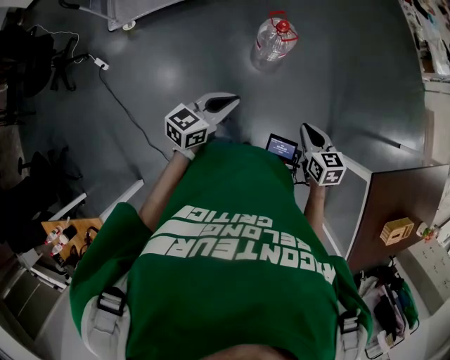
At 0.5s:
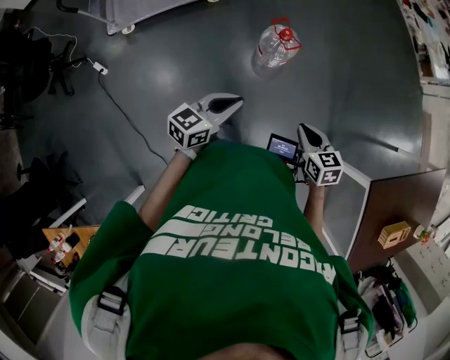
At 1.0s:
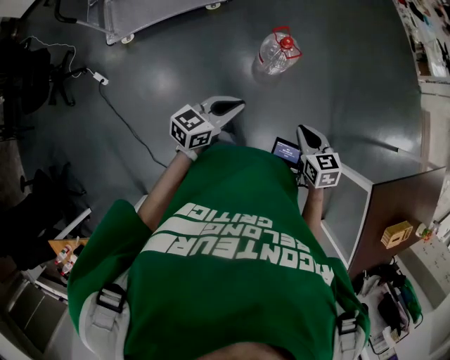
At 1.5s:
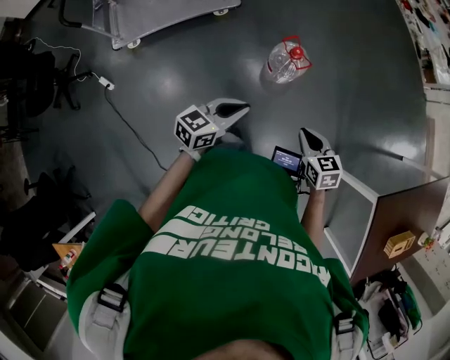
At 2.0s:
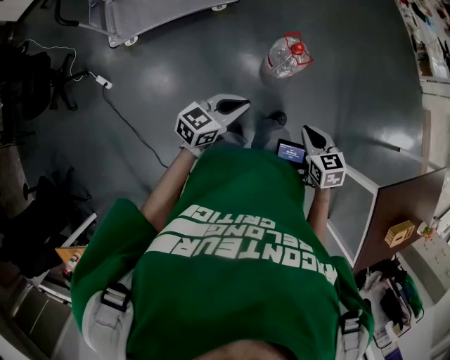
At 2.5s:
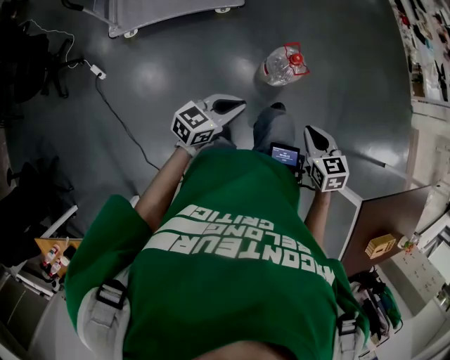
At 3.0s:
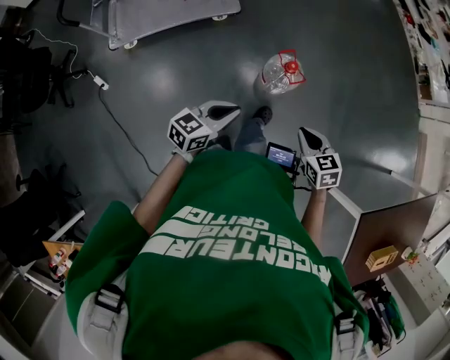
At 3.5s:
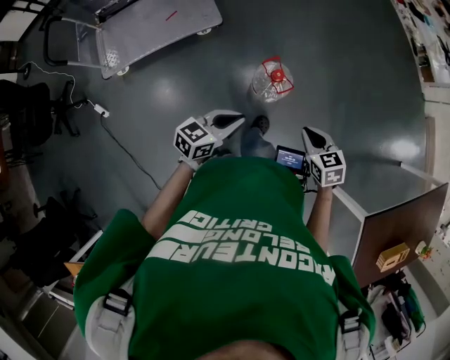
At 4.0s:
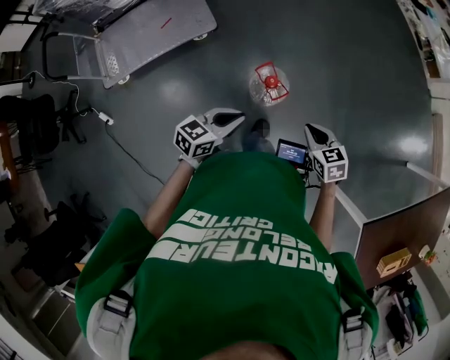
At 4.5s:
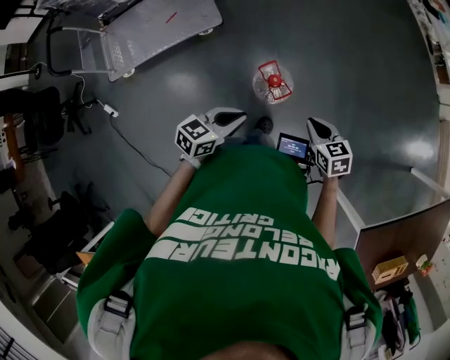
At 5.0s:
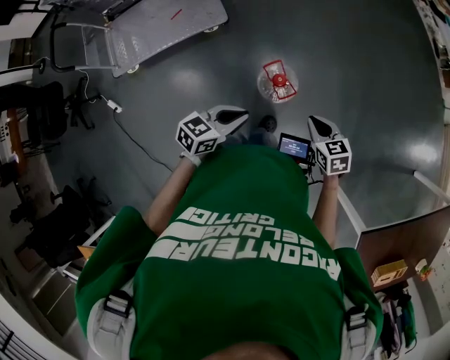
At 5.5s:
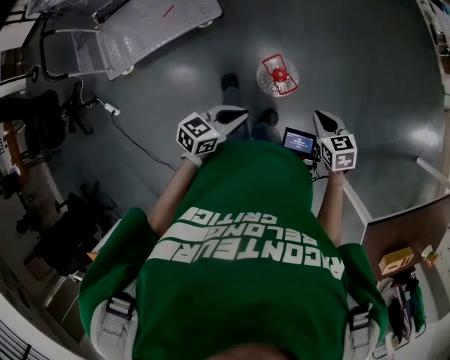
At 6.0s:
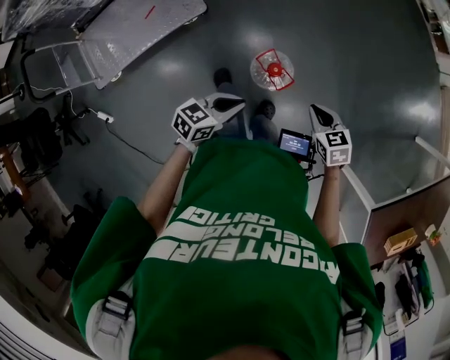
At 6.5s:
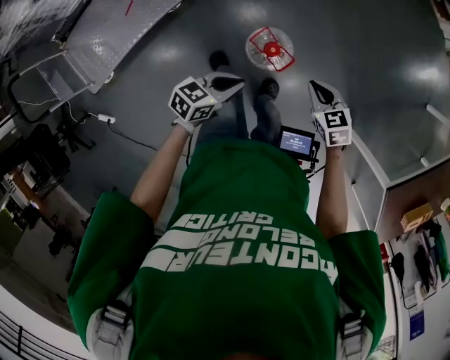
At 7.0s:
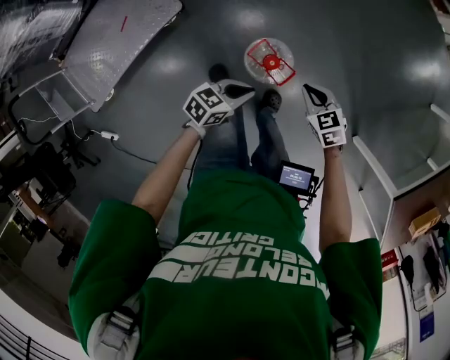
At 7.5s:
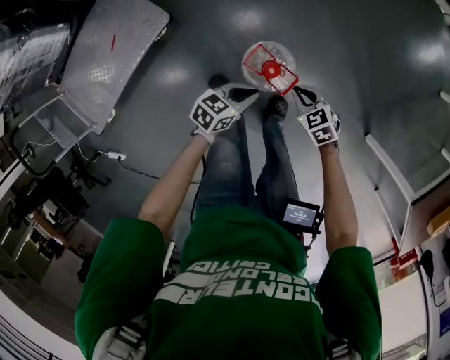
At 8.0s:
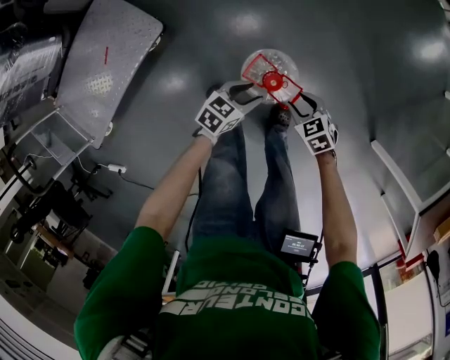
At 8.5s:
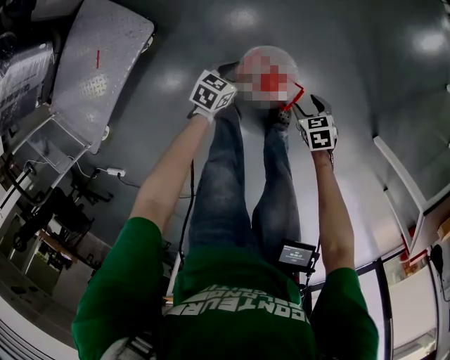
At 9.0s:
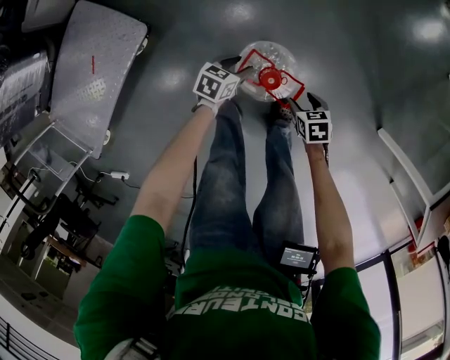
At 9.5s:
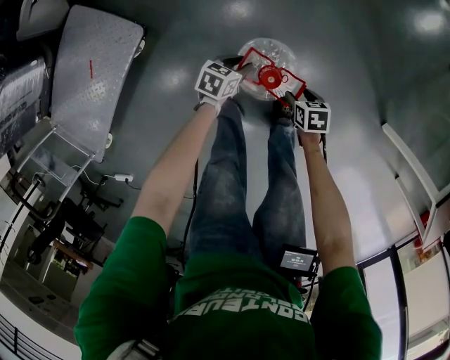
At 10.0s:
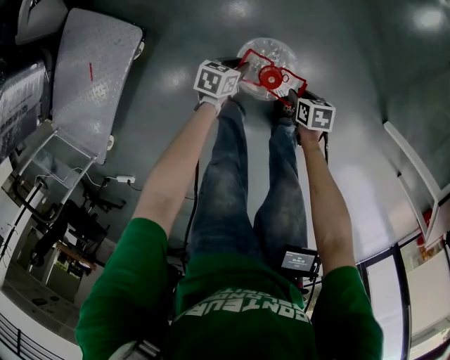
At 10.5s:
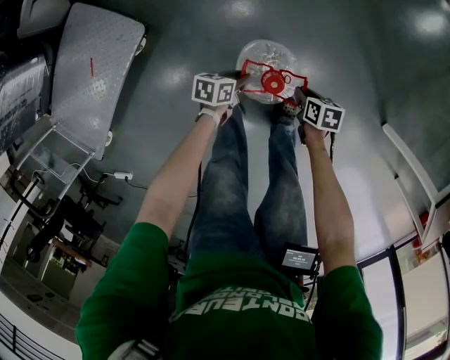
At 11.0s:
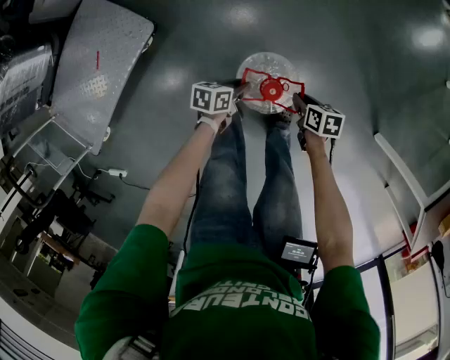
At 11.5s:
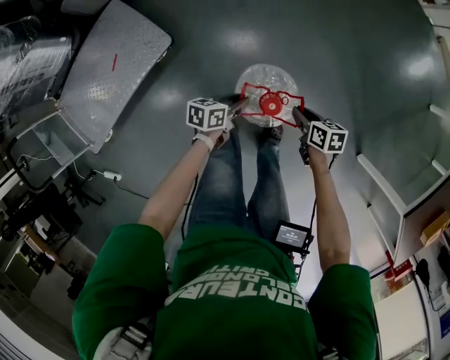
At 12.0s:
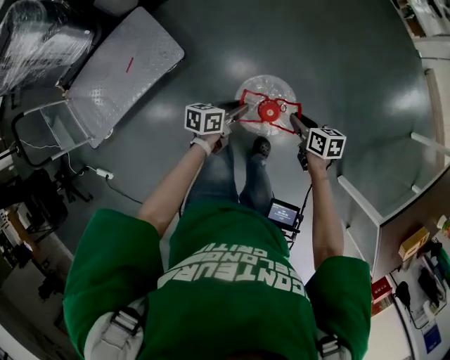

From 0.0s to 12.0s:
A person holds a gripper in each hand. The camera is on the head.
From 0.0s to 2.0s: Both grippers travel together to the left and forward, about 15 cm.
From 2.0s to 4.0s: The two grippers go roughly 25 cm forward and to the right.
From 4.0s to 6.0s: The left gripper goes approximately 10 cm forward and downward. Meanwhile the right gripper moves forward, some 10 cm.
From 6.0s to 8.0s: The right gripper goes some 30 cm downward, and opens up. Meanwhile the left gripper heads downward and forward, covering approximately 30 cm, rotates approximately 20 degrees, and opens up.
From 8.0s to 10.0s: The right gripper heads downward, covering some 10 cm, rolls clockwise, seen from behind, by approximately 50 degrees, and opens and closes again; the left gripper heads downward and forward, covering roughly 15 cm, and closes its fingers.
From 10.0s to 12.0s: Both grippers move upward, approximately 35 cm. The right gripper changes its angle by some 30 degrees, while the left gripper swivels some 40 degrees.

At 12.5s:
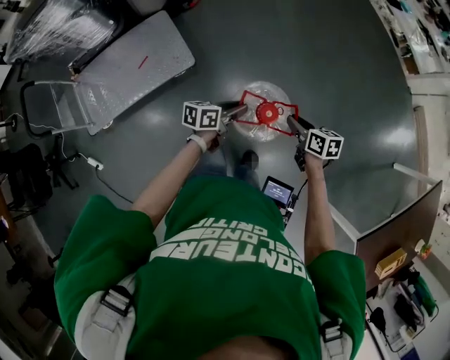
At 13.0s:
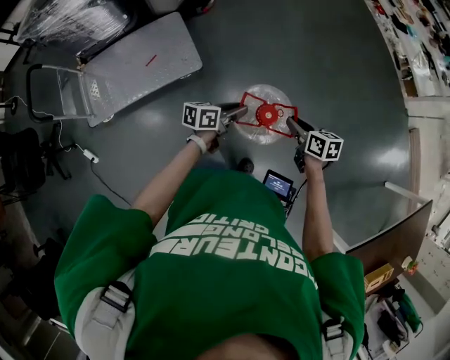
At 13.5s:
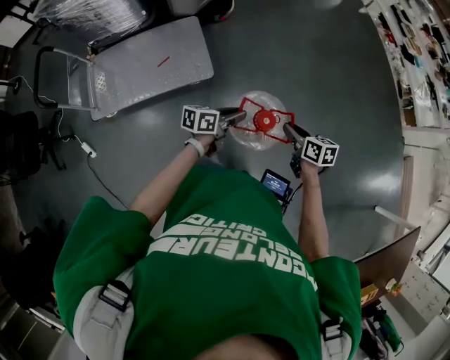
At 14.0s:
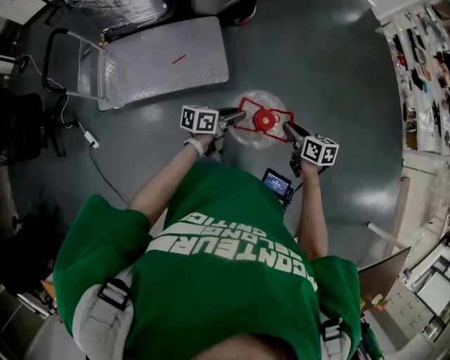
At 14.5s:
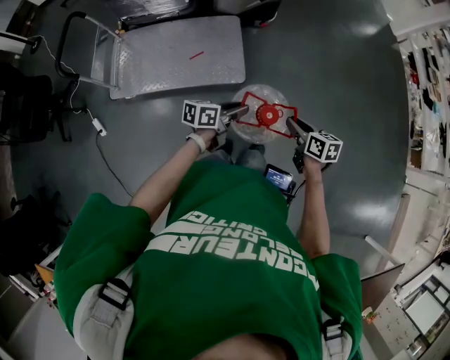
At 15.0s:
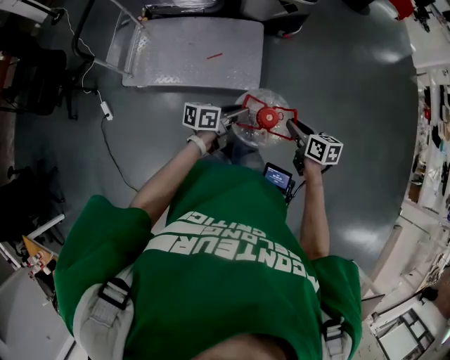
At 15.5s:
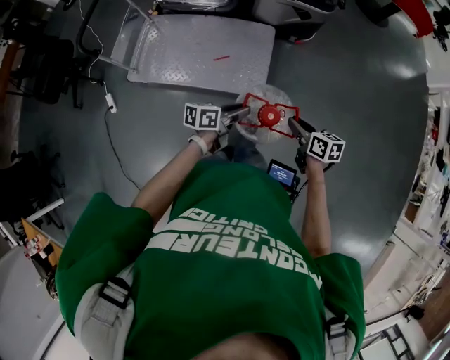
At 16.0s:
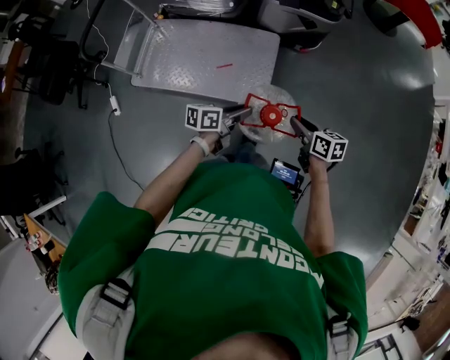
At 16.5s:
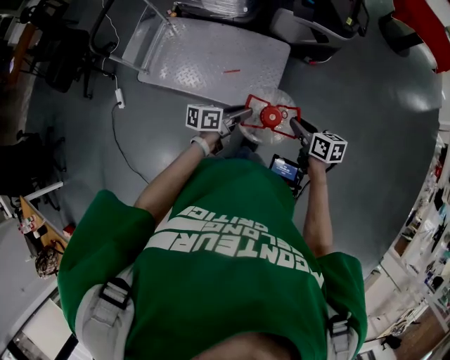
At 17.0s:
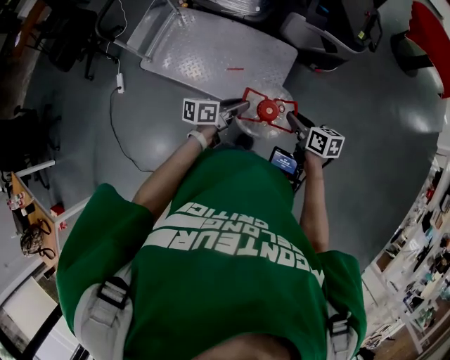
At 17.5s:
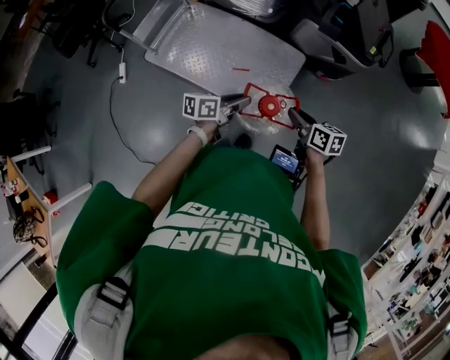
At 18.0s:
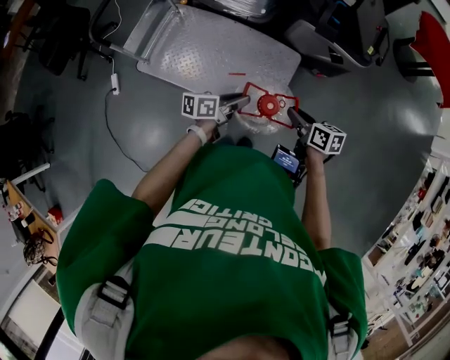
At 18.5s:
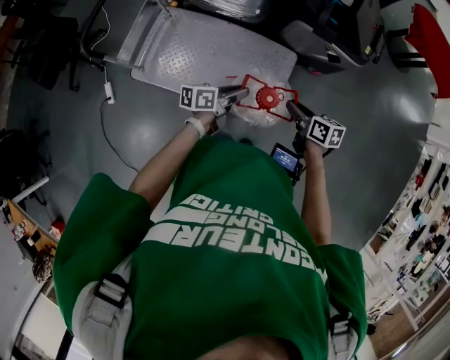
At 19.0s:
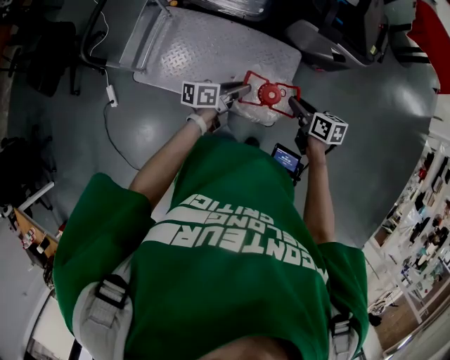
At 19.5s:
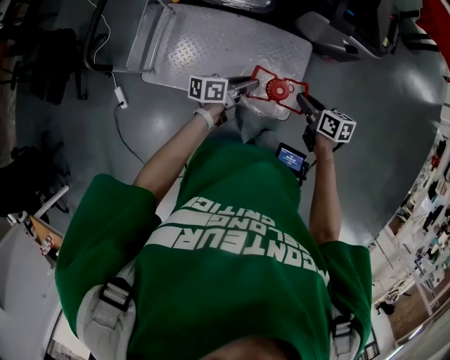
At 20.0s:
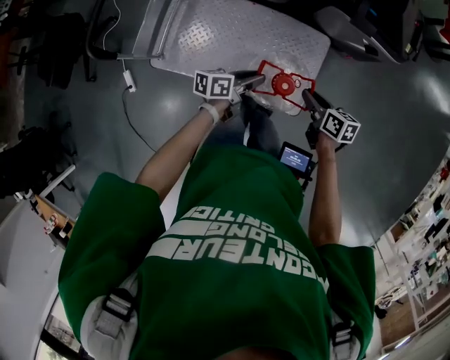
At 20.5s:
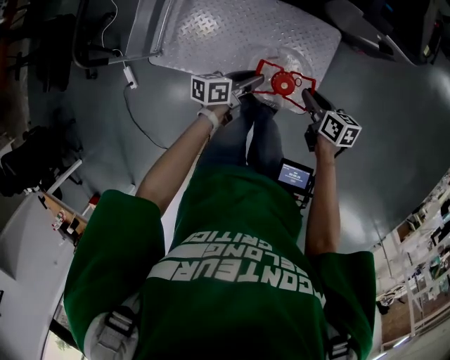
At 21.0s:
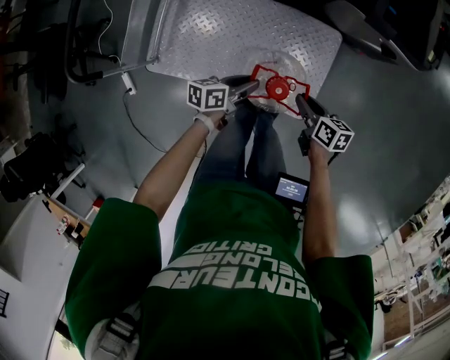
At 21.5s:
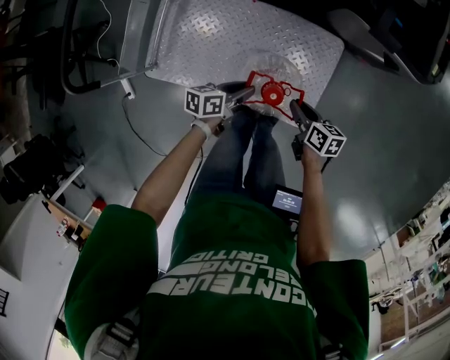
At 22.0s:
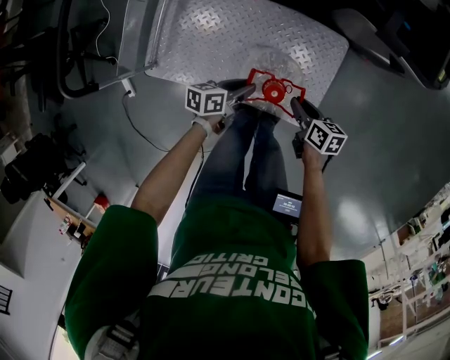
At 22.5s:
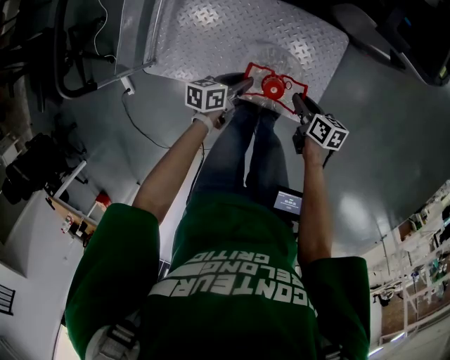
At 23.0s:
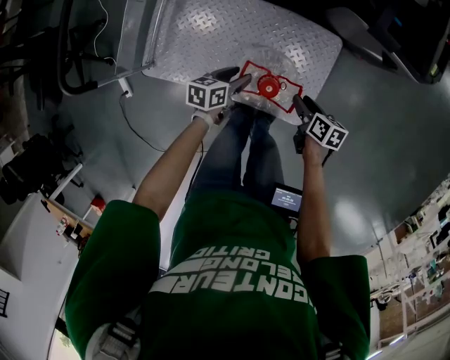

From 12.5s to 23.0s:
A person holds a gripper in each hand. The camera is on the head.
From 12.5s to 14.5s: The right gripper is displaced to the left and forward by approximately 30 cm, and rotates some 20 degrees. The left gripper travels to the left by some 25 cm, and turns by approximately 20 degrees.
From 14.5s to 16.5s: The right gripper shifts by approximately 25 cm, and turns by about 20 degrees. Meanwhile the left gripper changes place by about 20 cm, and changes its angle by about 20 degrees.
From 16.5s to 19.0s: The two grippers go about 25 cm forward and to the left.
From 19.0s to 21.0s: The right gripper goes about 15 cm downward; the left gripper is displaced downward and forward by approximately 20 cm.
From 21.0s to 23.0s: The right gripper moves downward, approximately 5 cm, and opens its fingers; the left gripper is displaced downward and forward by roughly 5 cm, and opens.

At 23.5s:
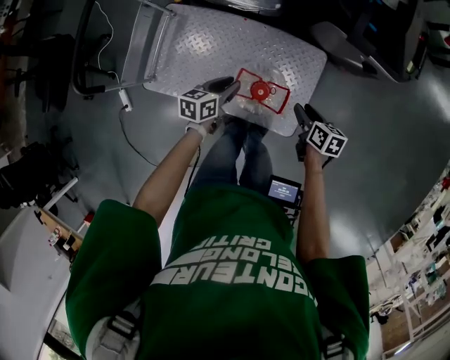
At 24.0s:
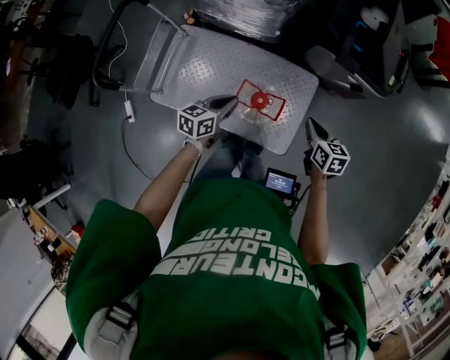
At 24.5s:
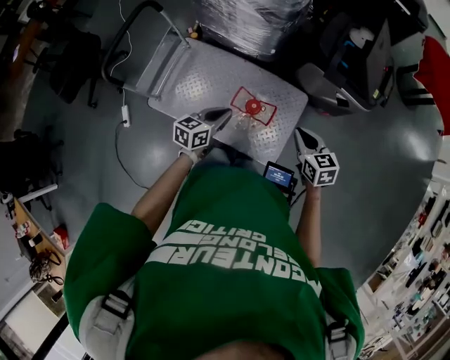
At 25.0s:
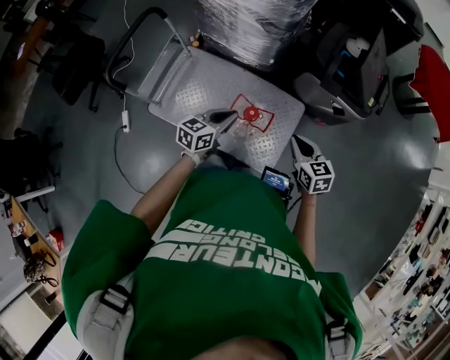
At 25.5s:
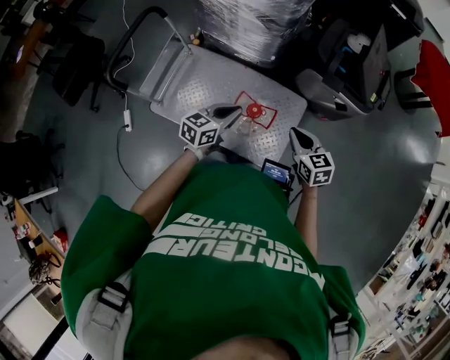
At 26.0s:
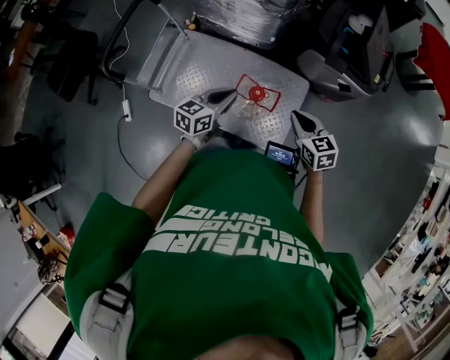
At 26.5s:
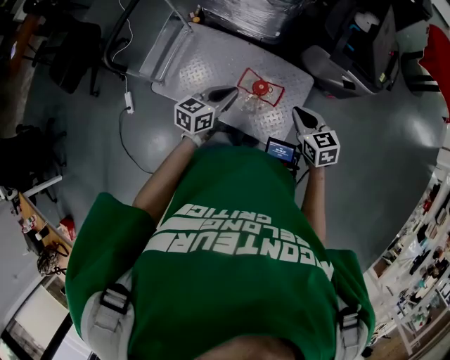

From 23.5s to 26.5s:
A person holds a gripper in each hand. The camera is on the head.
From 23.5s to 25.0s: The left gripper moves upward and backward, approximately 20 cm, changes its angle by approximately 20 degrees, and closes its fingers. Meanwhile the right gripper travels upward by about 20 cm, swivels some 40 degrees, and closes up.
From 25.0s to 26.5s: There are only small adjustments of the grippers.

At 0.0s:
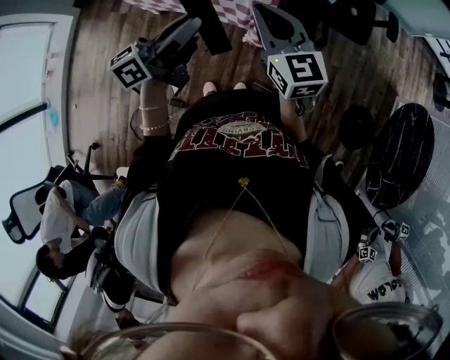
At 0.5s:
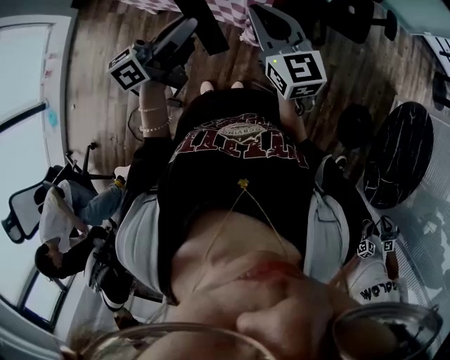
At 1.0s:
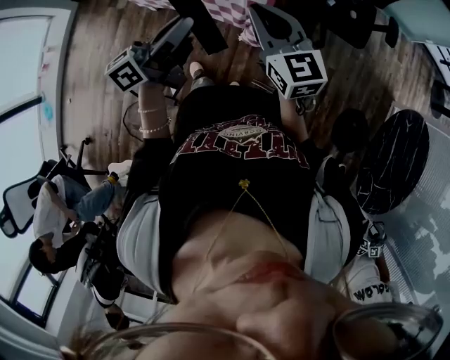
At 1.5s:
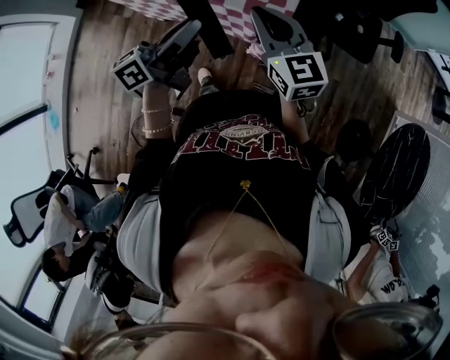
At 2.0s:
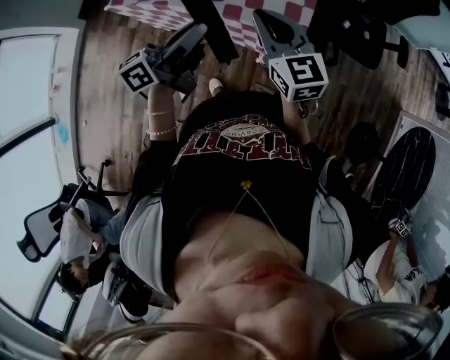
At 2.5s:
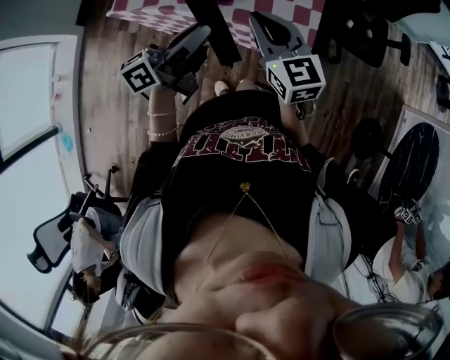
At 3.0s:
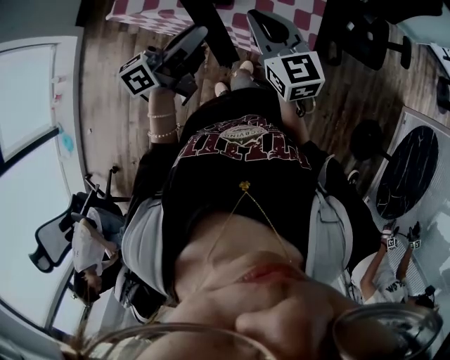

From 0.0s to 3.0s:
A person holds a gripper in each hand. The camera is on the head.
From 0.0s to 1.5s: The two grippers go about 5 cm forward.
From 1.5s to 3.0s: Both grippers travel together to the left and forward, some 15 cm.
